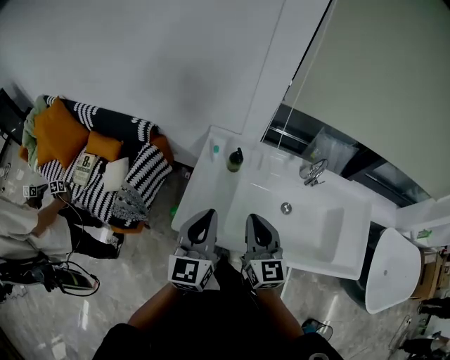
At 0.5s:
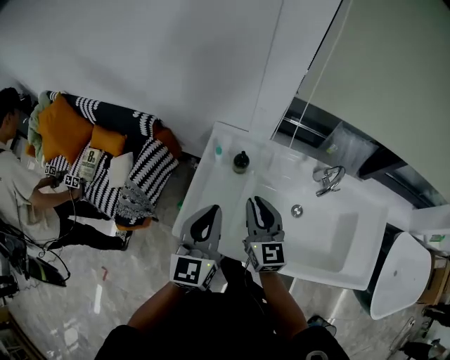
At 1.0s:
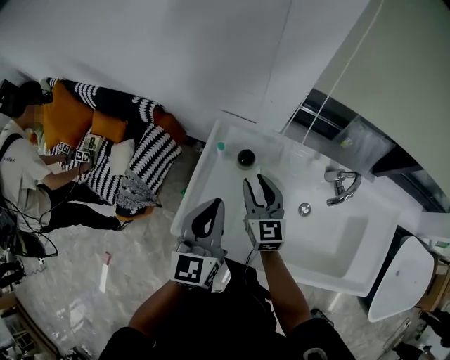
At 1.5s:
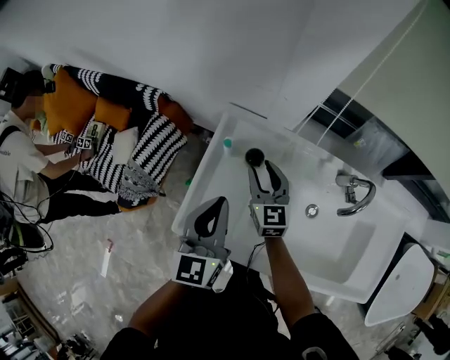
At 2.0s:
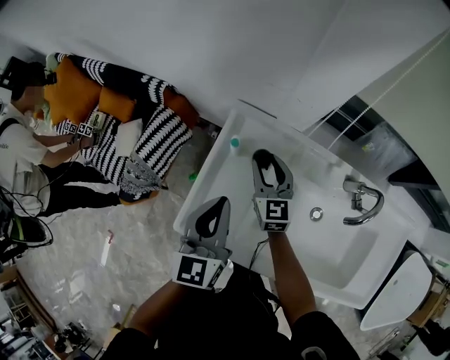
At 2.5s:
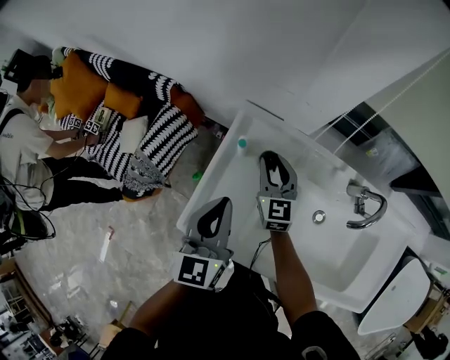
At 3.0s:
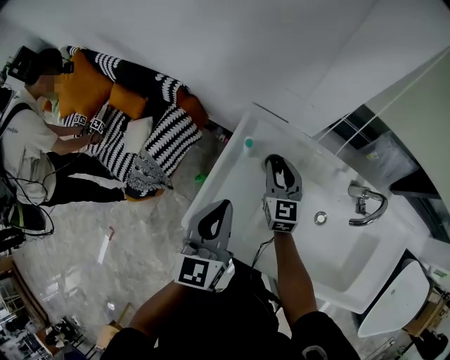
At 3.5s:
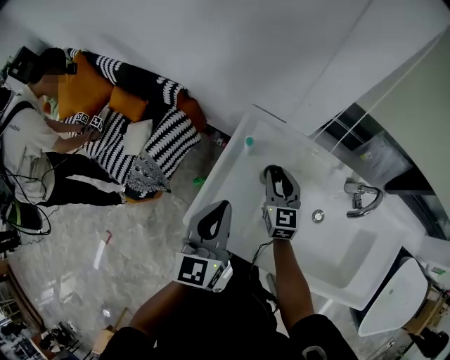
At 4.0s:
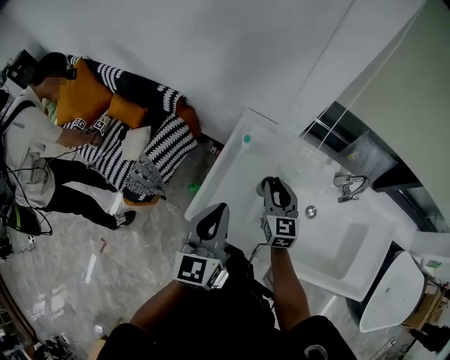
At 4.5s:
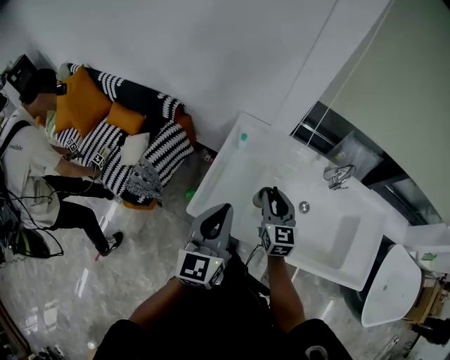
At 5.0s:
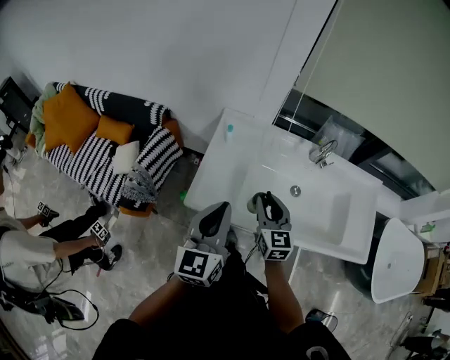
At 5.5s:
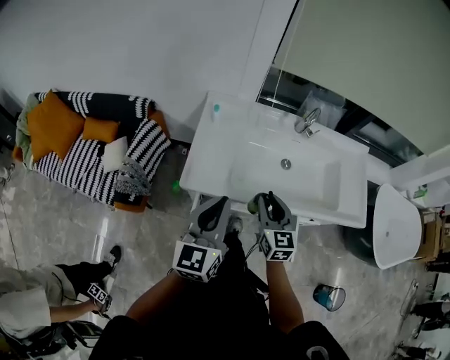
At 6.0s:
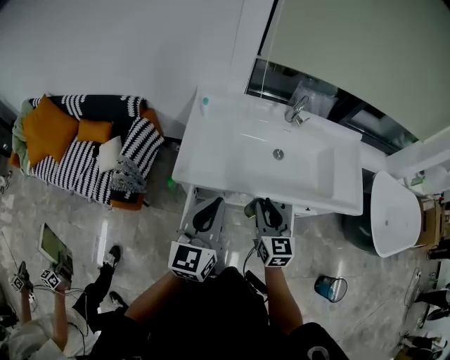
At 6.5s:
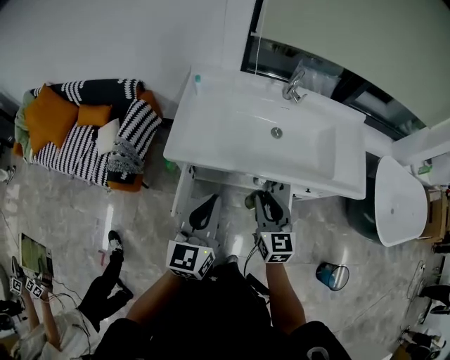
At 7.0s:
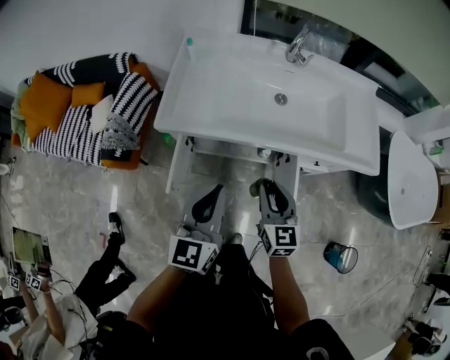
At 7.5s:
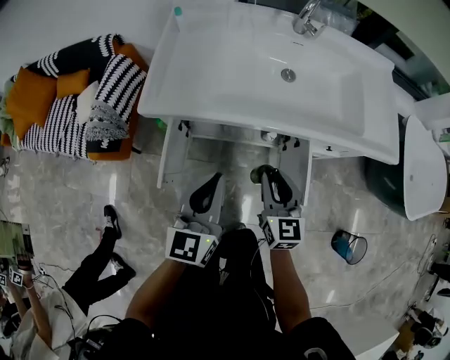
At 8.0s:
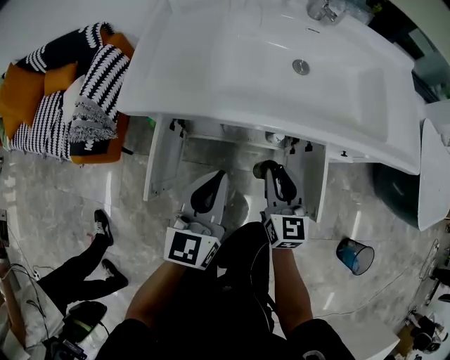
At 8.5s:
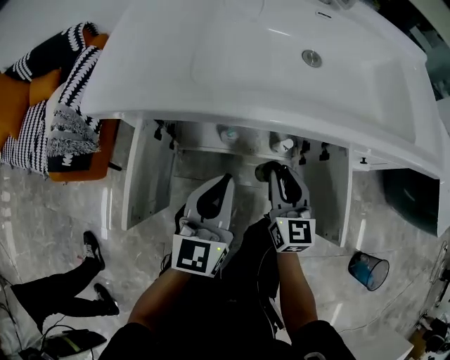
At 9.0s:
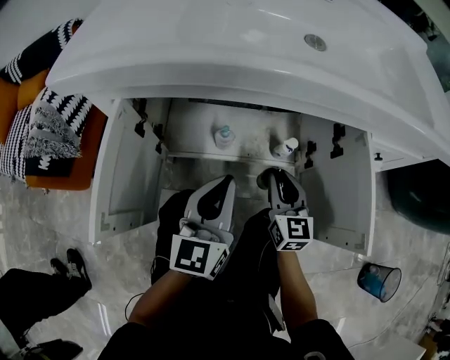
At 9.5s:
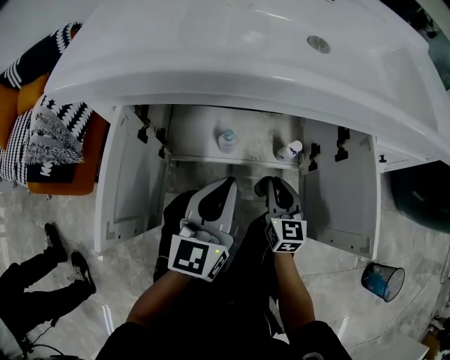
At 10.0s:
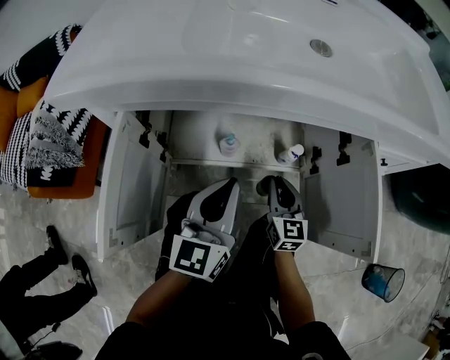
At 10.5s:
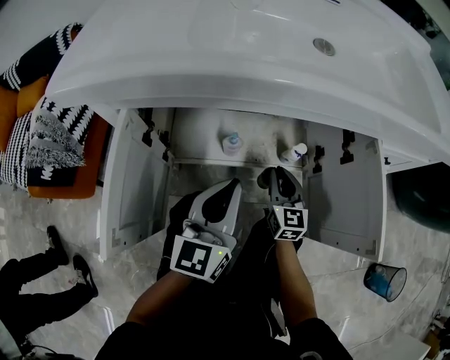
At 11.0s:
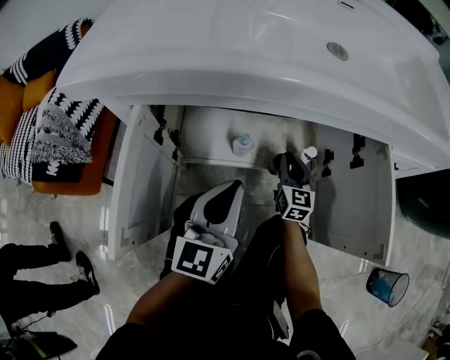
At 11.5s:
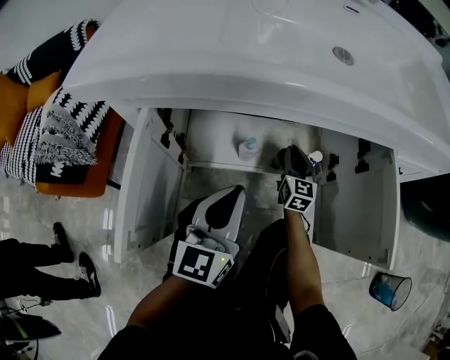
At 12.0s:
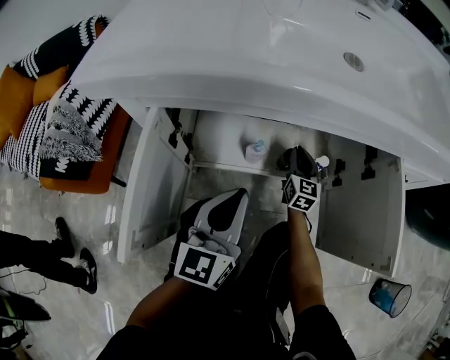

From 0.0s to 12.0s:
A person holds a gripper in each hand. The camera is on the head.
From 0.0s to 2.0s: The right gripper is displaced forward and downward by roughly 30 cm, and opens up; the left gripper goes about 15 cm forward and downward.
From 2.0s to 4.0s: Both grippers travel together backward and upward, approximately 10 cm.
From 4.0s to 6.0s: Both grippers travel together backward, about 25 cm. The left gripper rotates roughly 20 degrees.
From 6.0s to 8.0s: Both grippers travel together downward, roughly 30 cm.
From 8.0s to 10.0s: Both grippers travel together downward, some 25 cm.
From 10.0s to 12.0s: The right gripper is displaced forward and downward by roughly 15 cm.

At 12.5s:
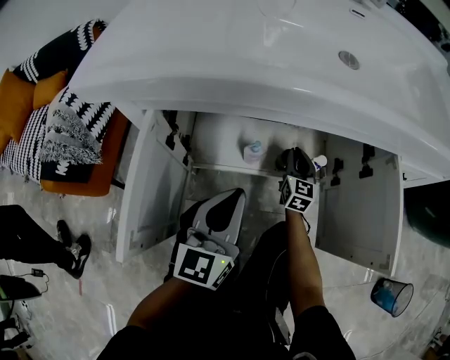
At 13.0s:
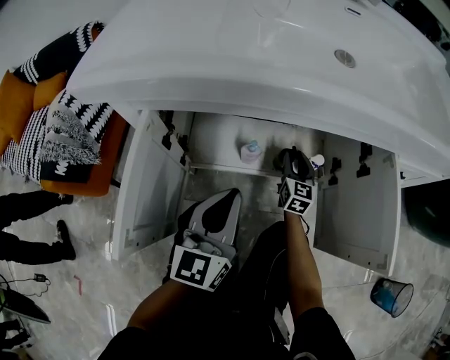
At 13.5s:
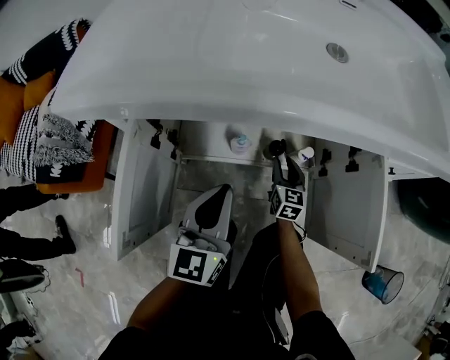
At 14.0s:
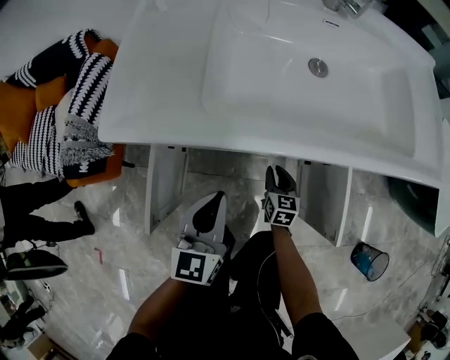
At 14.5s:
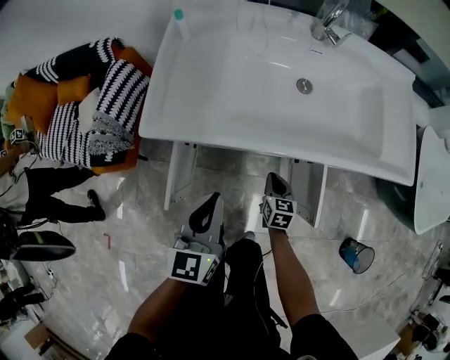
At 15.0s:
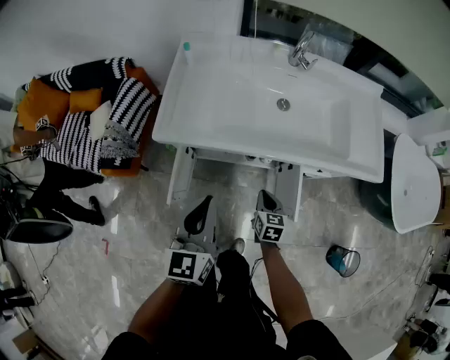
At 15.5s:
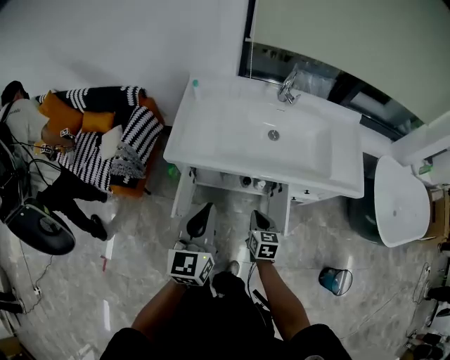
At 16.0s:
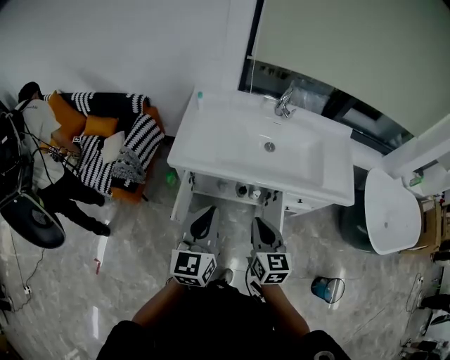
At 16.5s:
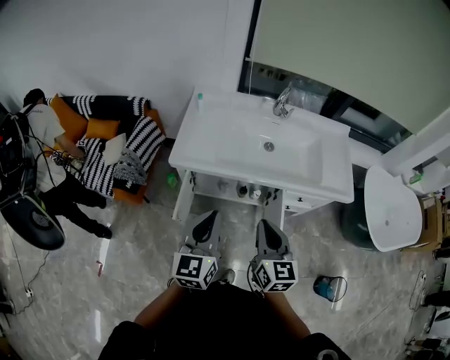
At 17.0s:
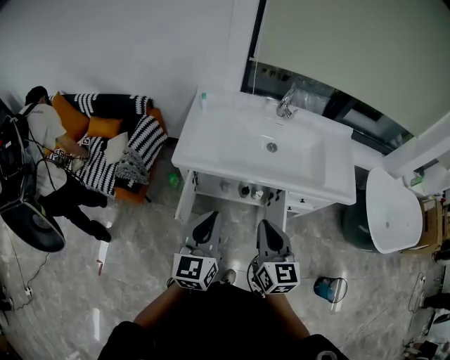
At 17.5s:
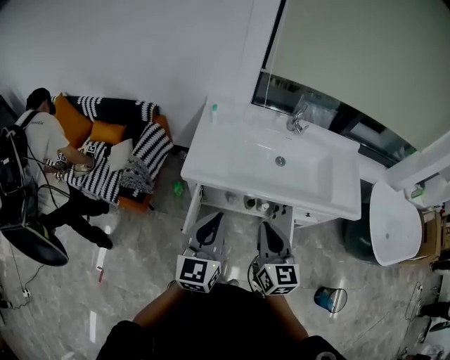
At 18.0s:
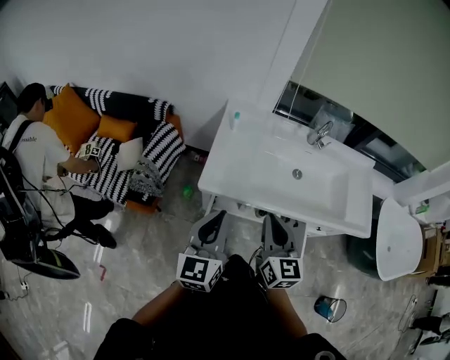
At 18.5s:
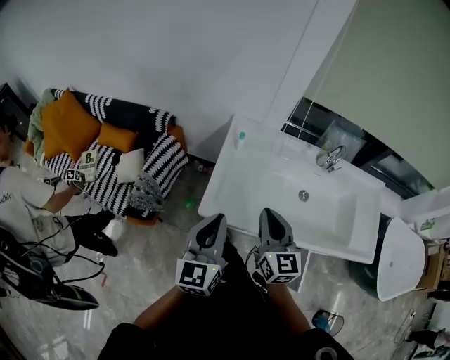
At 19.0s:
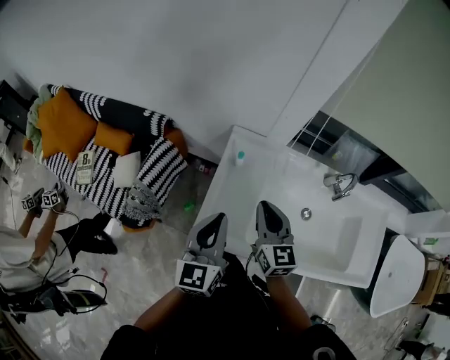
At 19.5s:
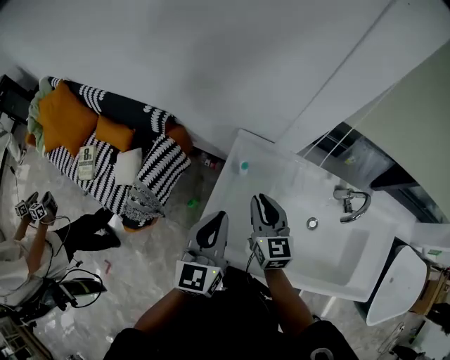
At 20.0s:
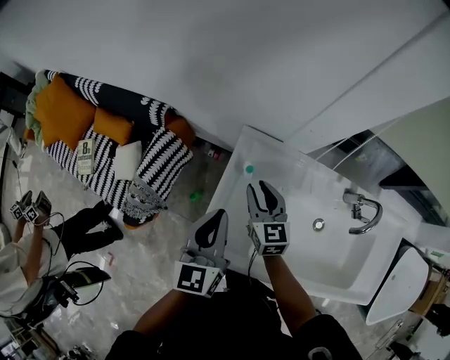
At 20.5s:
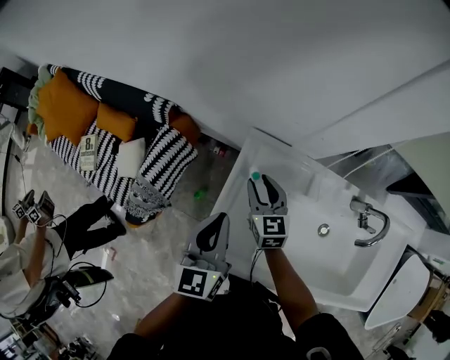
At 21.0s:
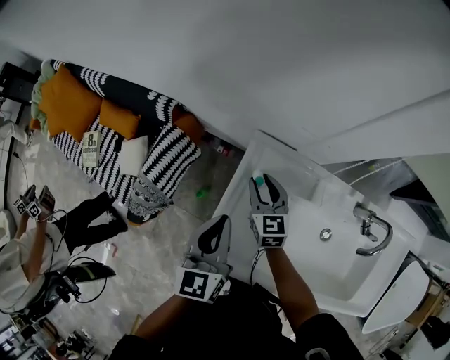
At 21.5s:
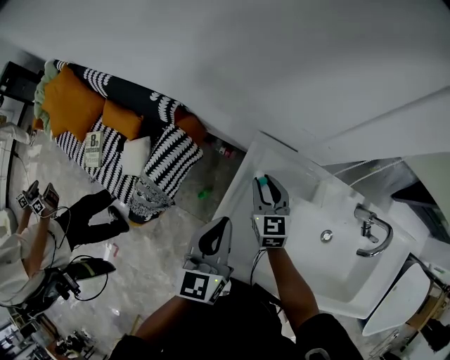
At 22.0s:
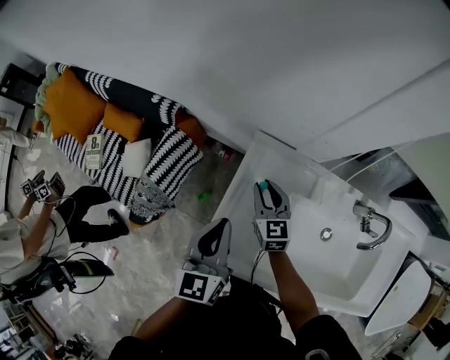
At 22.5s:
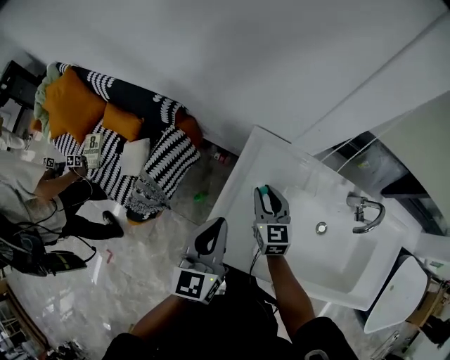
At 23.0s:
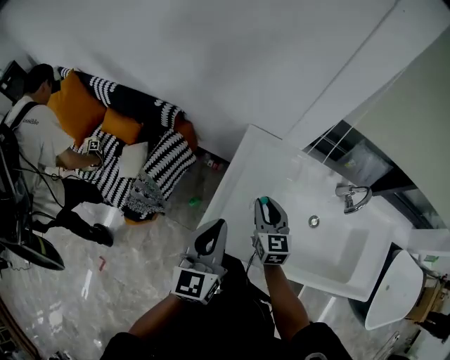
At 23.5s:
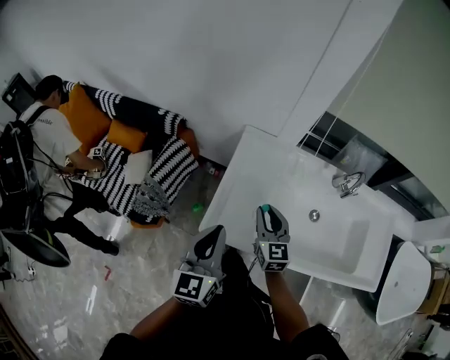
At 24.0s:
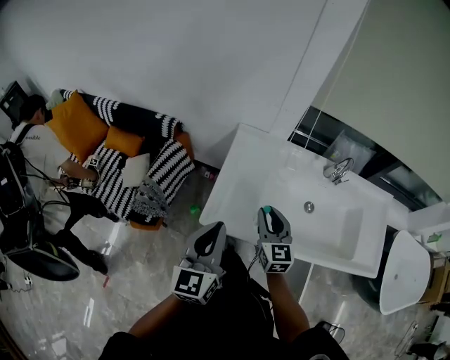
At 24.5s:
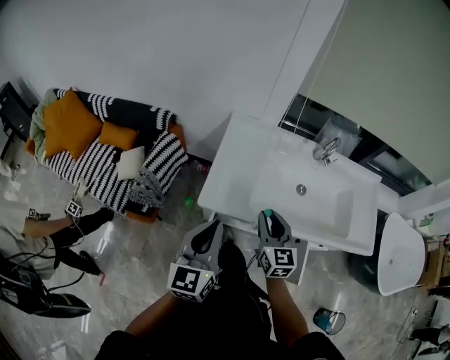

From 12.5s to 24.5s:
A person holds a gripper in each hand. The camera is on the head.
From 12.5s to 14.5s: The left gripper moves upward, about 30 cm. The right gripper shifts some 30 cm upward and backward, changes its angle by some 30 degrees, and opens, then closes once more.
From 14.5s to 16.5s: The left gripper heads upward and backward, covering about 25 cm. Meanwhile the right gripper heads upward, covering approximately 50 cm, and changes its angle by roughly 30 degrees.
From 16.5s to 18.5s: Both grippers move forward and to the left, about 30 cm.
From 18.5s to 20.5s: The right gripper is displaced forward and downward by some 40 cm, rotates some 20 degrees, and opens; the left gripper moves forward, about 25 cm.
From 20.5s to 22.5s: Both grippers move backward, about 5 cm.
From 22.5s to 24.5s: The two grippers go some 30 cm backward.

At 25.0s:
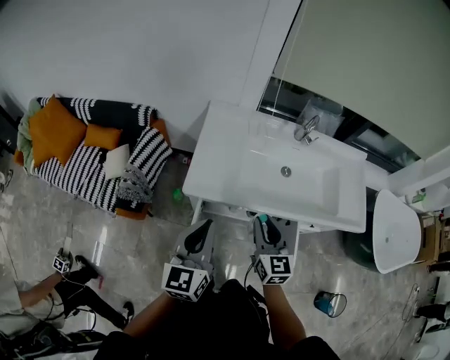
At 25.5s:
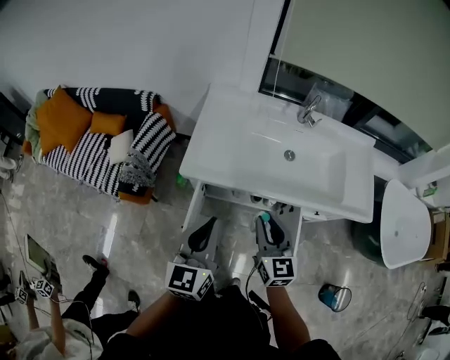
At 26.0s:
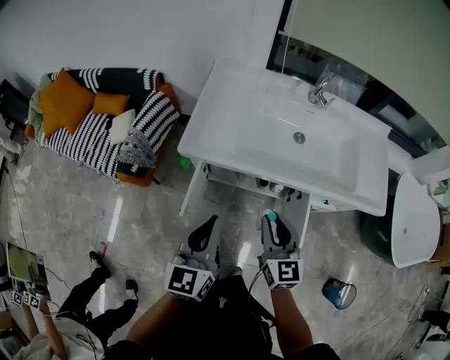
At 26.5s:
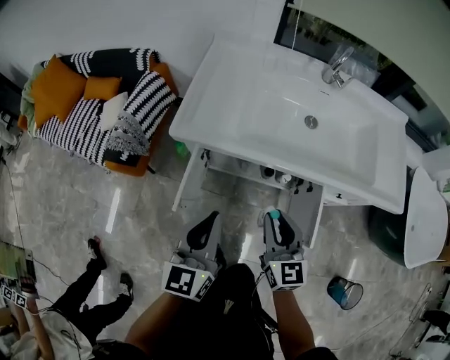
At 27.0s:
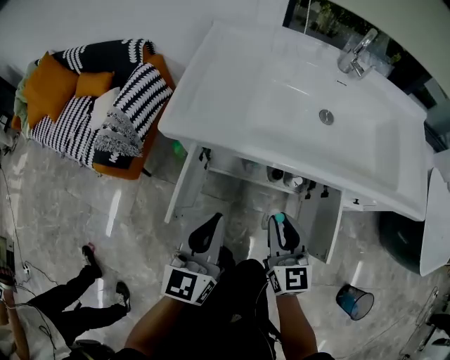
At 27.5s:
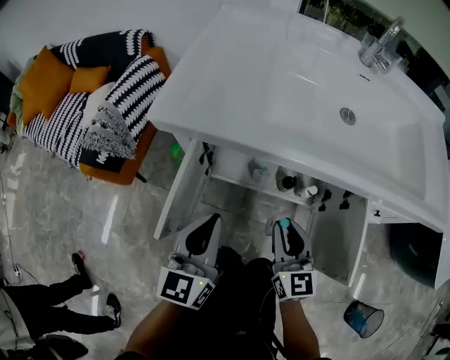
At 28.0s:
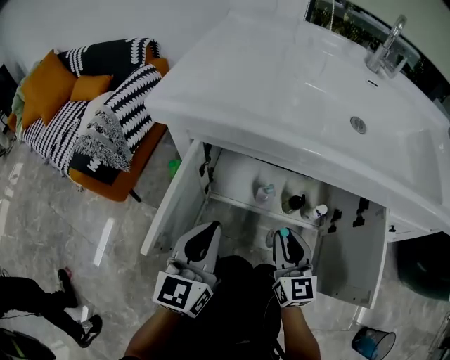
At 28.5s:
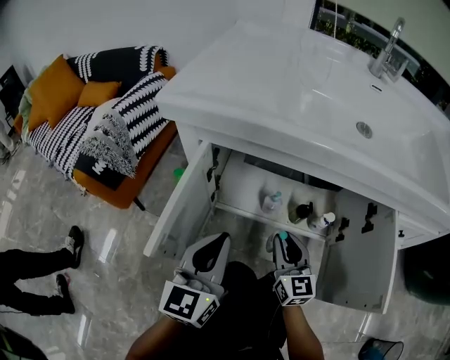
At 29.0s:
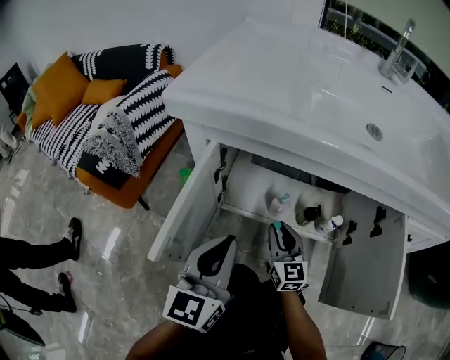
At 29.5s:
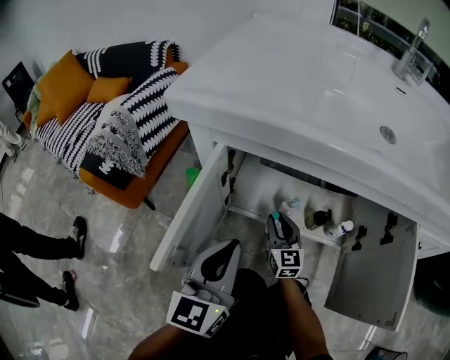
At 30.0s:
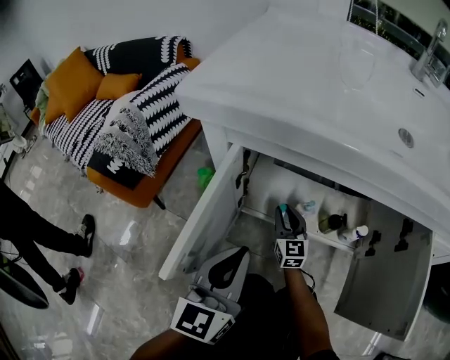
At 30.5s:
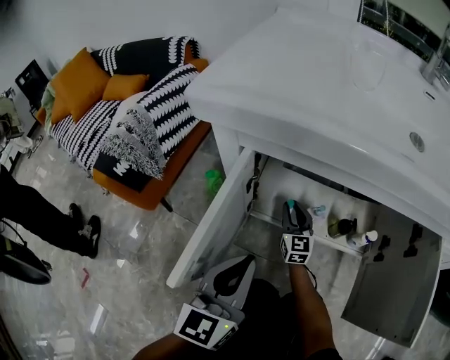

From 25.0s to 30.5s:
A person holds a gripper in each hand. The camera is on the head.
From 25.0s to 27.0s: Both grippers travel together downward, approximately 25 cm.
From 27.0s to 28.5s: Both grippers move downward, some 25 cm.
From 28.5s to 30.5s: The right gripper is displaced forward, downward and to the left by about 25 cm.
